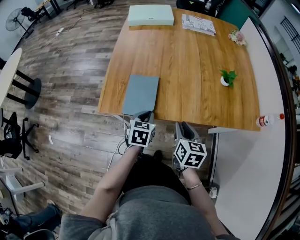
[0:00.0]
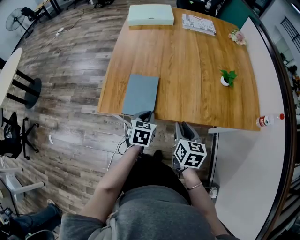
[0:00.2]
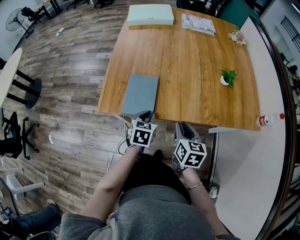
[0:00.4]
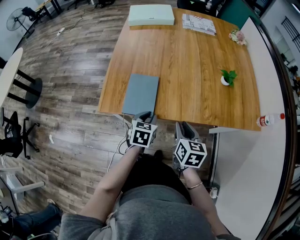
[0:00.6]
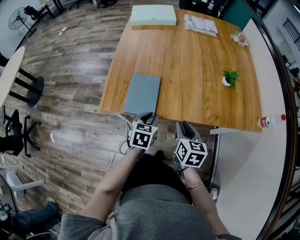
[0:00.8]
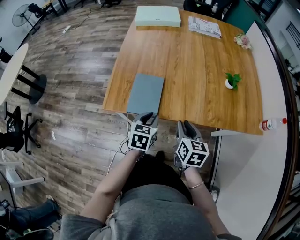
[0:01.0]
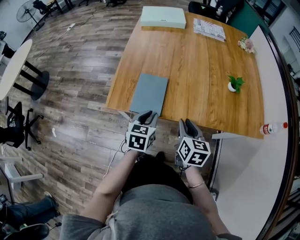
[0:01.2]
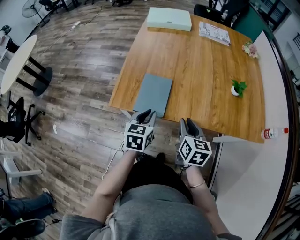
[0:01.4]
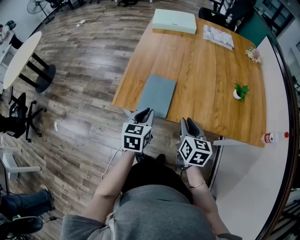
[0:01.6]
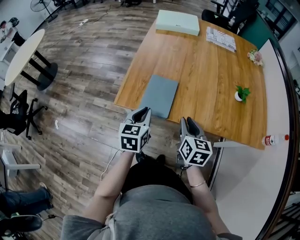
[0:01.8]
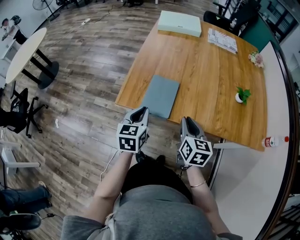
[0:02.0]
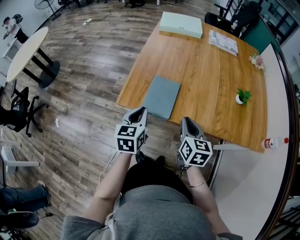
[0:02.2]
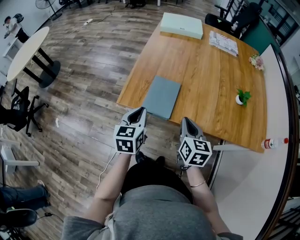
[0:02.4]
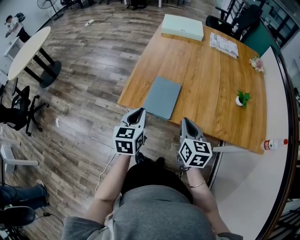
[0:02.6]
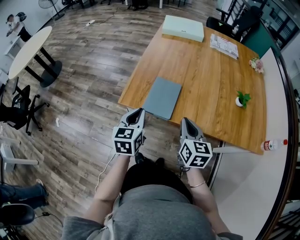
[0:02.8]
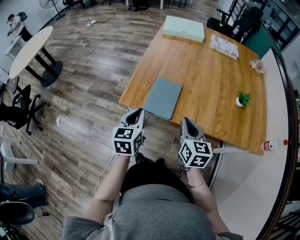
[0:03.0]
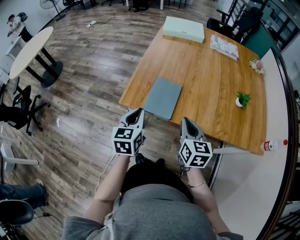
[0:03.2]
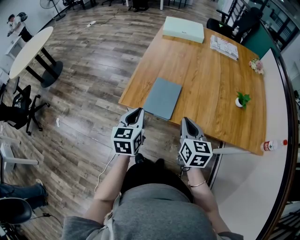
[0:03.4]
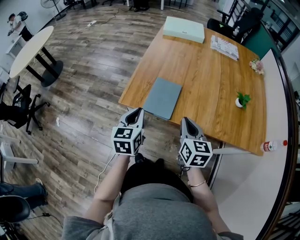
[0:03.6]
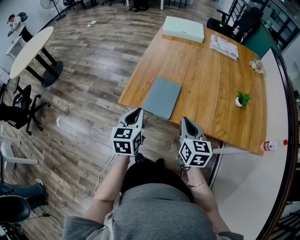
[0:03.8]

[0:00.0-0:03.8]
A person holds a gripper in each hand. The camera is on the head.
0.0 to 1.2 s: There are only small adjustments of the grippers.
1.2 to 2.6 s: The left gripper heads to the left and upward, covering about 10 cm. The right gripper heads to the left, covering some 5 cm, and closes.
2.6 to 3.8 s: Neither gripper changes place.

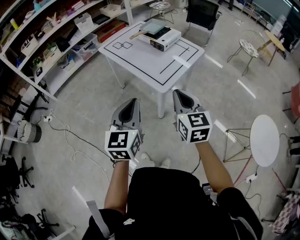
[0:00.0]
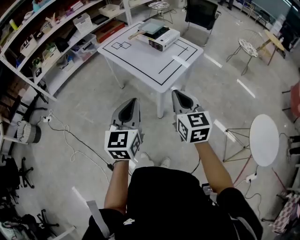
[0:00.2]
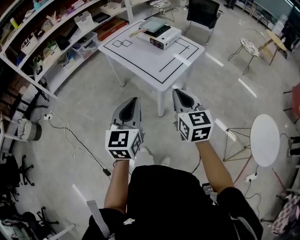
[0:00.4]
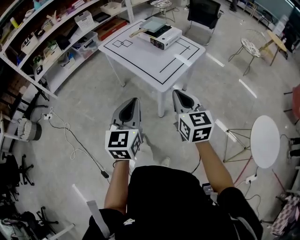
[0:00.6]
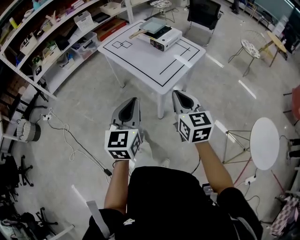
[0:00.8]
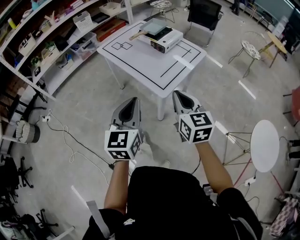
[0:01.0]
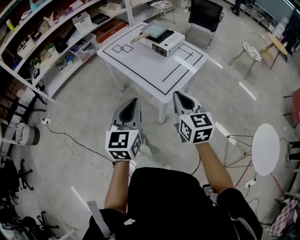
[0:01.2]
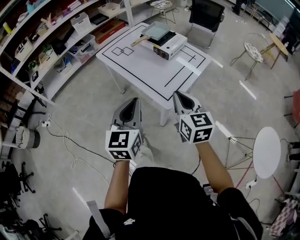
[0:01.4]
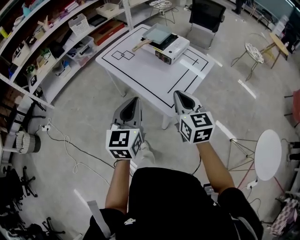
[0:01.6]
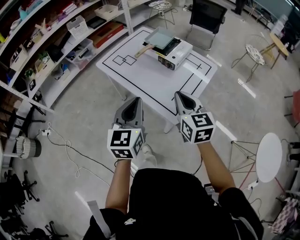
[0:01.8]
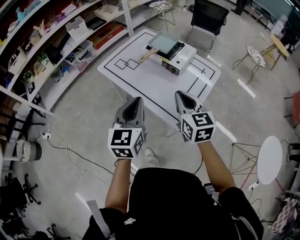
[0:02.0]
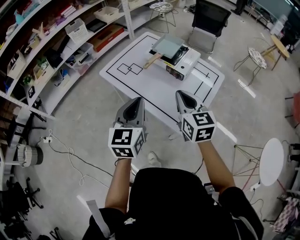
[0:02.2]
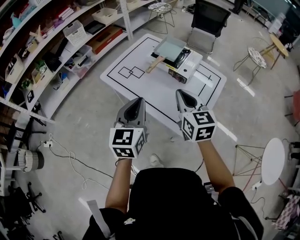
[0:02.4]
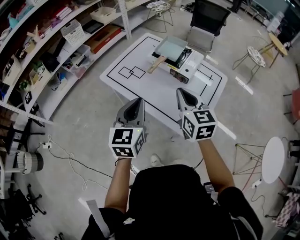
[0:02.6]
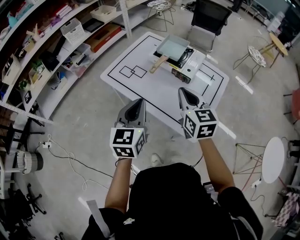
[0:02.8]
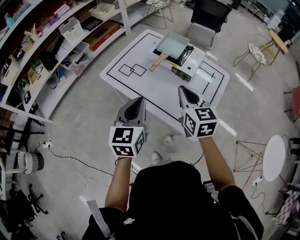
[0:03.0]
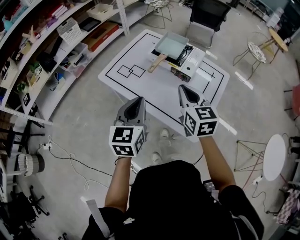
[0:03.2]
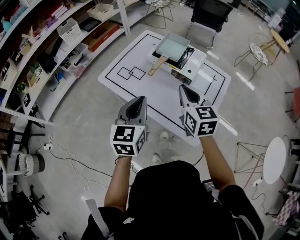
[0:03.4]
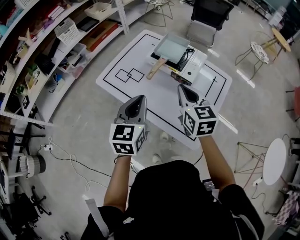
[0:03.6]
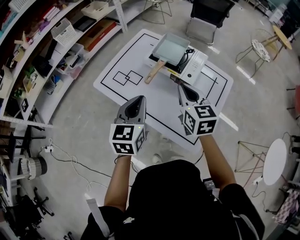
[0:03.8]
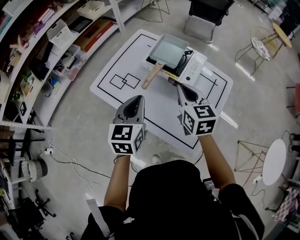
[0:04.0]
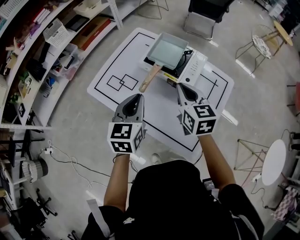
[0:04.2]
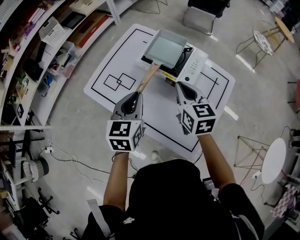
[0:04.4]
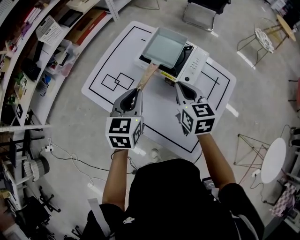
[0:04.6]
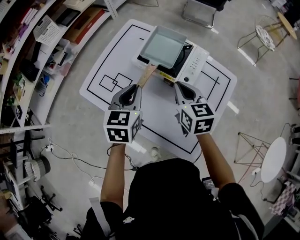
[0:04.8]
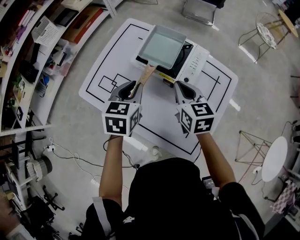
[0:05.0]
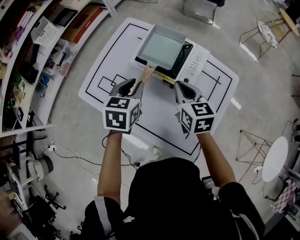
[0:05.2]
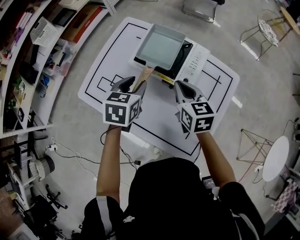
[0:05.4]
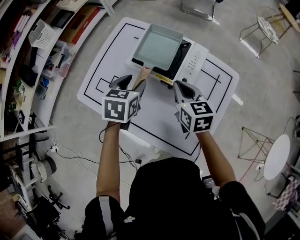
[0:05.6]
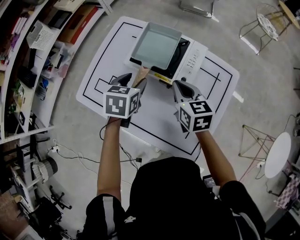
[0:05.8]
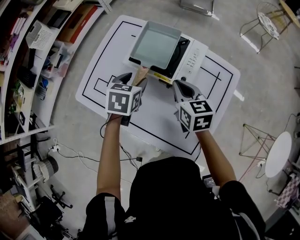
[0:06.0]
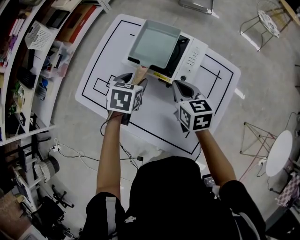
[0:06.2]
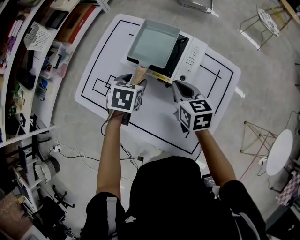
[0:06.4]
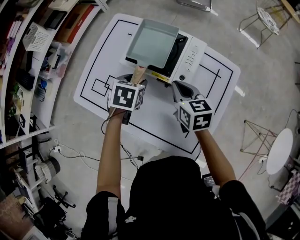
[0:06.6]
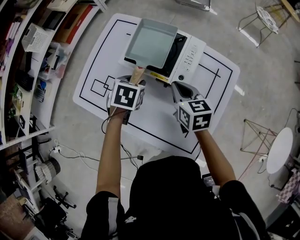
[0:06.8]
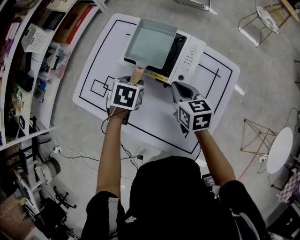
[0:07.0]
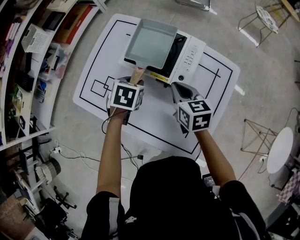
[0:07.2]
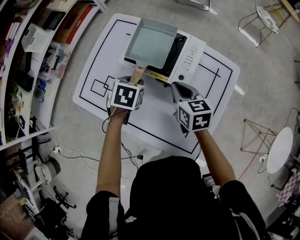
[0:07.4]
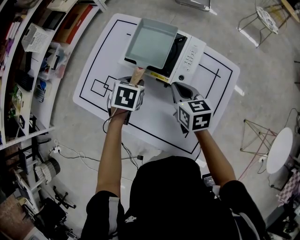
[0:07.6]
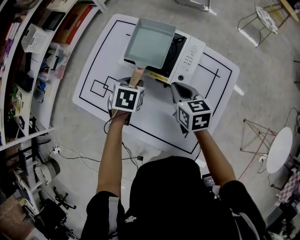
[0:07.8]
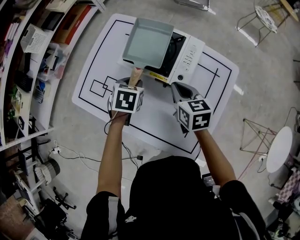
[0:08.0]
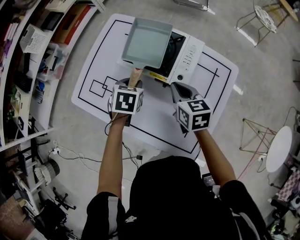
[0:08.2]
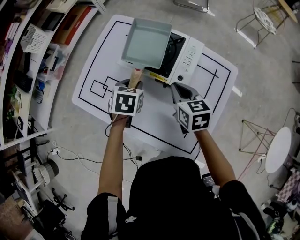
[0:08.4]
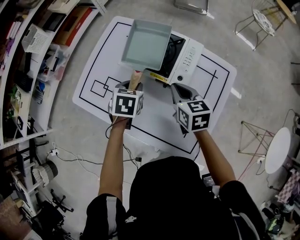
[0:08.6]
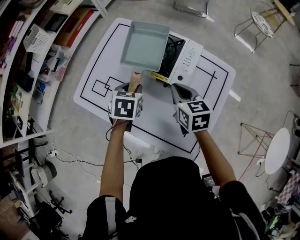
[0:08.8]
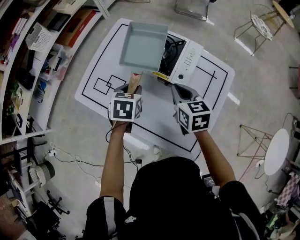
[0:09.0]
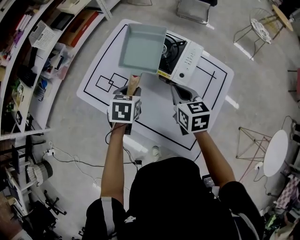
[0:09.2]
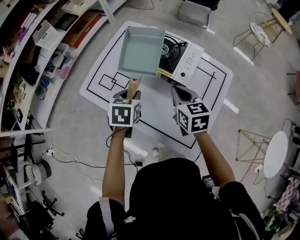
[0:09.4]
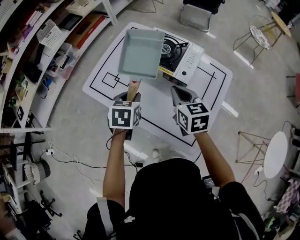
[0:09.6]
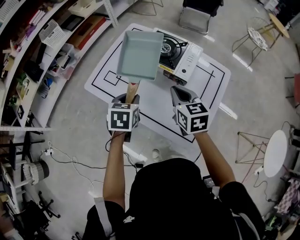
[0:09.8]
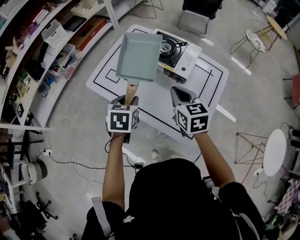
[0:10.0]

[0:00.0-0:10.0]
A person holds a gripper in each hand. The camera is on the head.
0.0 to 1.4 s: Both grippers move forward, roughly 15 cm.
1.4 to 2.8 s: The grippers both shift forward and to the left by approximately 30 cm.
2.8 to 4.2 s: Both grippers move forward, roughly 15 cm.
4.2 to 5.8 s: The left gripper moves forward and downward, approximately 20 cm, swivels about 30 degrees, and opens up; the right gripper shifts approximately 10 cm downward and forward.
5.8 to 7.2 s: The left gripper heads downward, covering some 5 cm, and closes its fingers.
7.2 to 8.6 s: The grippers move only a little.
8.6 to 10.0 s: The grippers both shift backward, upward and to the left by approximately 20 cm.

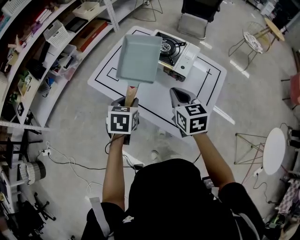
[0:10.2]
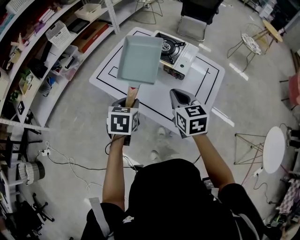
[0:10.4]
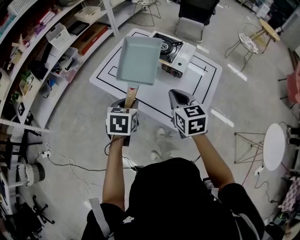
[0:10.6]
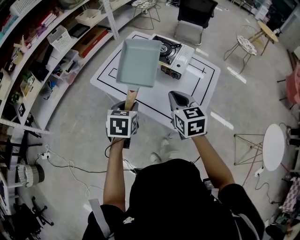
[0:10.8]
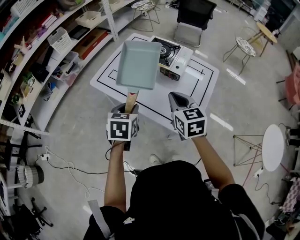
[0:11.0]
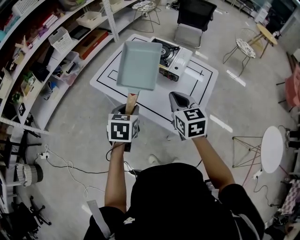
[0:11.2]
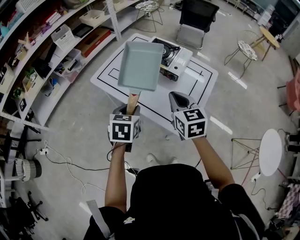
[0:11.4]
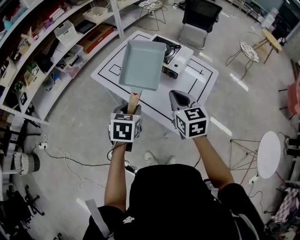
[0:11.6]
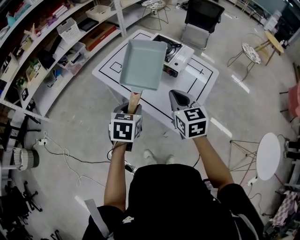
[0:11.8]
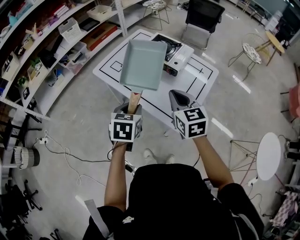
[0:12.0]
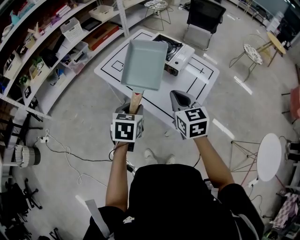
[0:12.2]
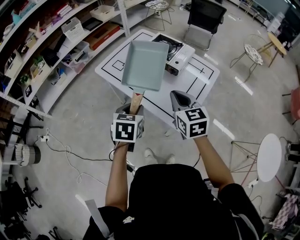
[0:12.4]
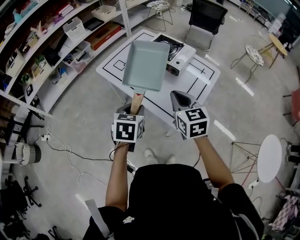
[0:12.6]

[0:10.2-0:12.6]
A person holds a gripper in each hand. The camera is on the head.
10.2 to 11.4 s: The grippers both shift backward by some 10 cm.
11.4 to 12.6 s: The two grippers go some 5 cm backward.

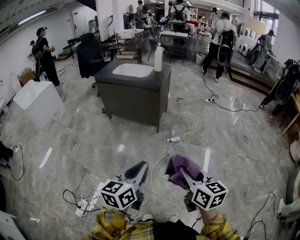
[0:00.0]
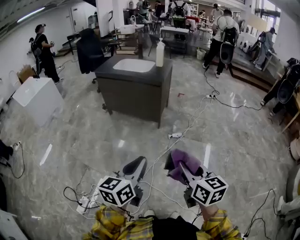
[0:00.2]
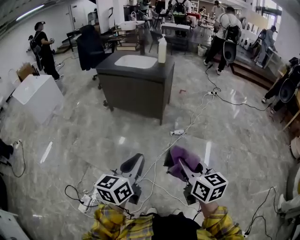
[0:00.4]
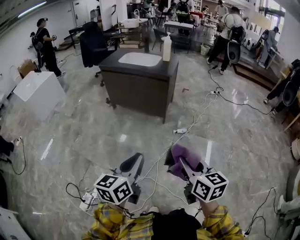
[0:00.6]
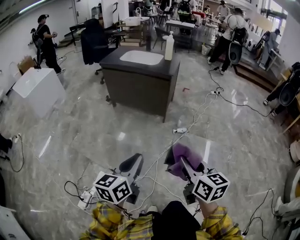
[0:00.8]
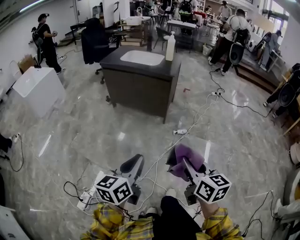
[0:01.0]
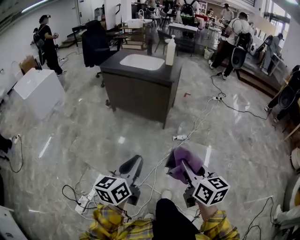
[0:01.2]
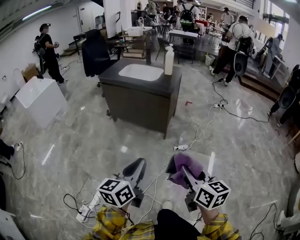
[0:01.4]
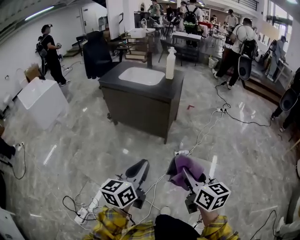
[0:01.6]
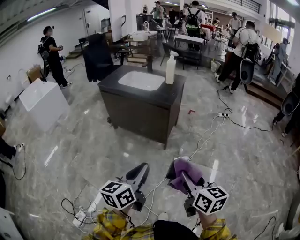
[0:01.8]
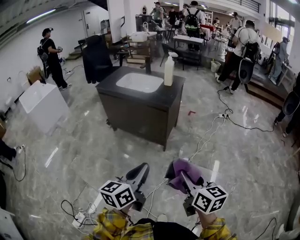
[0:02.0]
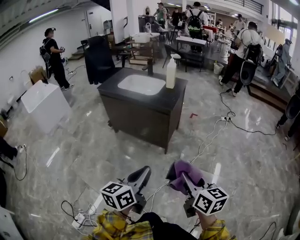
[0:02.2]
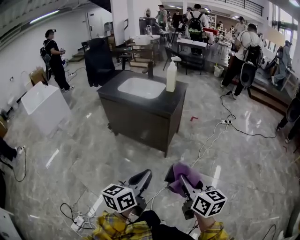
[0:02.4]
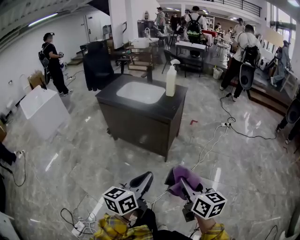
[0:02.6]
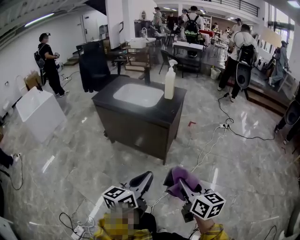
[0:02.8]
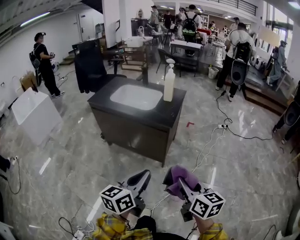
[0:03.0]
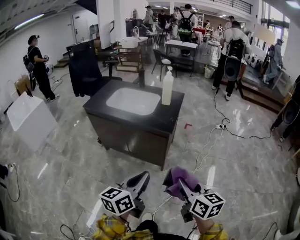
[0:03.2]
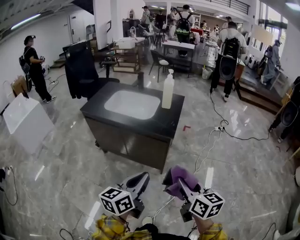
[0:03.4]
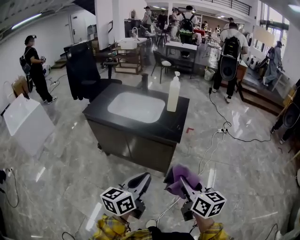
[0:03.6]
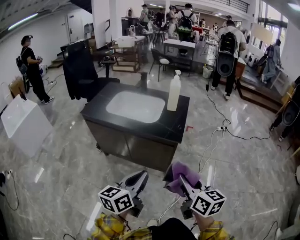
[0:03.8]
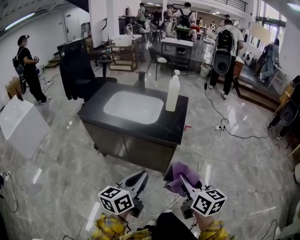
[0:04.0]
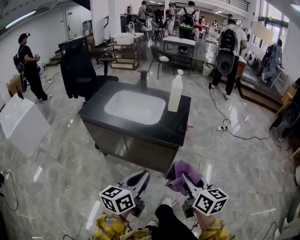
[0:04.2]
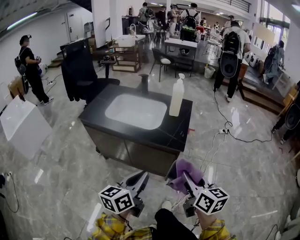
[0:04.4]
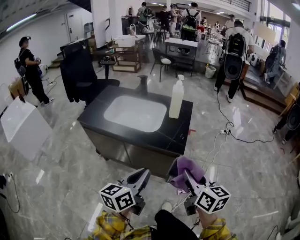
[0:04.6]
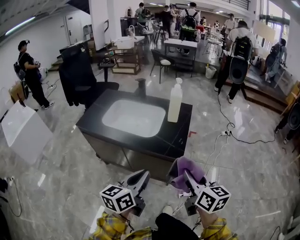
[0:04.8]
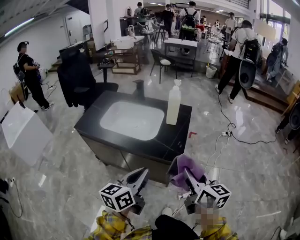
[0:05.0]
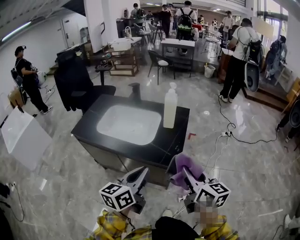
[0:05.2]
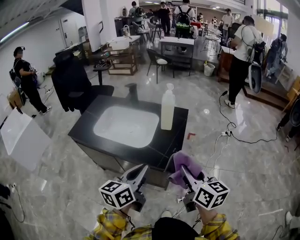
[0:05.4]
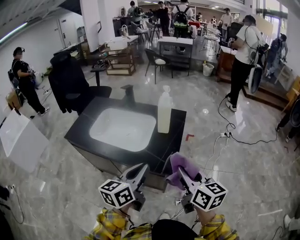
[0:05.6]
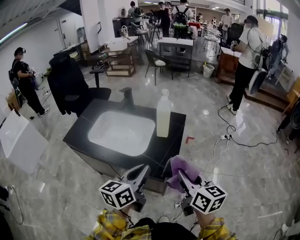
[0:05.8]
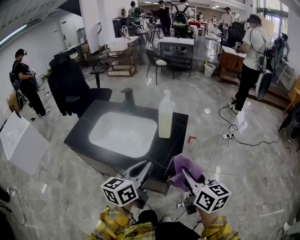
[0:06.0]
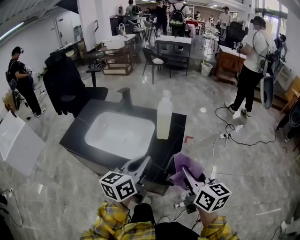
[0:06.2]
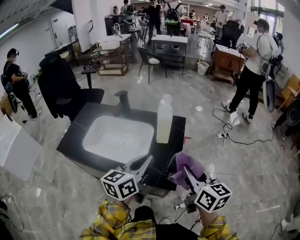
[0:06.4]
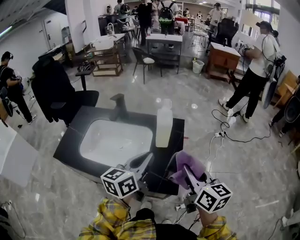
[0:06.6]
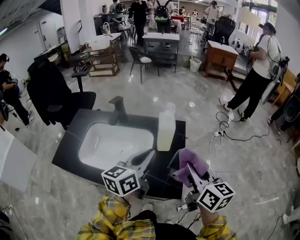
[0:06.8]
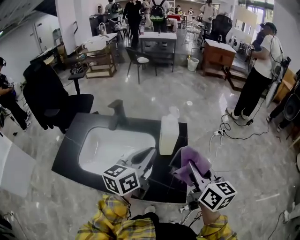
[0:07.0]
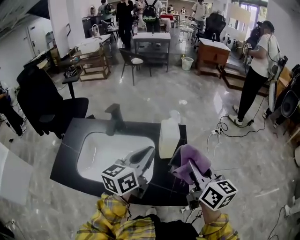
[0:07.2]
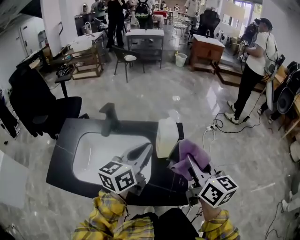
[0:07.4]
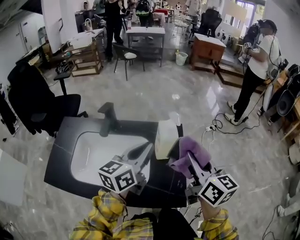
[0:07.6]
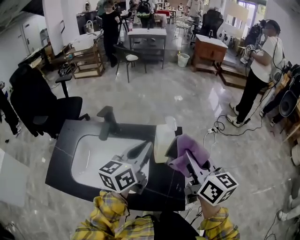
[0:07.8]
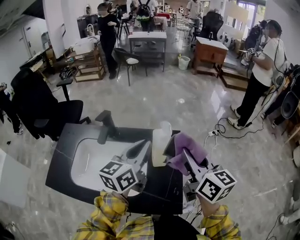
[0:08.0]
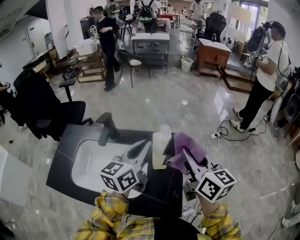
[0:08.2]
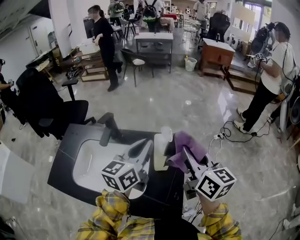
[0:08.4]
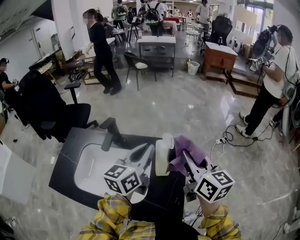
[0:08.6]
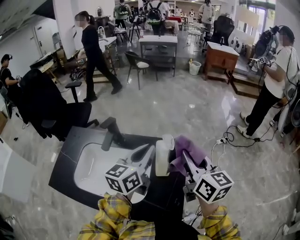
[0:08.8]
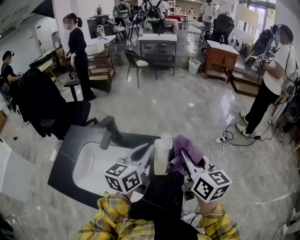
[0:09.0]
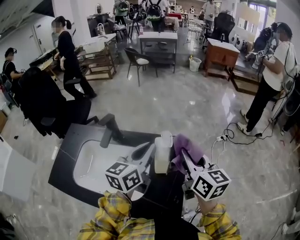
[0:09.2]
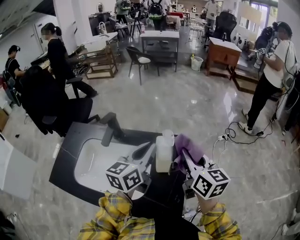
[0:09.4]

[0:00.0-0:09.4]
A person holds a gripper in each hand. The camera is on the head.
0.0 to 1.6 s: Both grippers travel together forward, about 20 cm.
1.6 to 3.2 s: The grippers both shift forward by some 30 cm.
3.2 to 4.8 s: Both grippers move forward, roughly 25 cm.
4.8 to 6.2 s: The grippers both shift forward by roughly 20 cm.
6.2 to 7.8 s: The right gripper is displaced forward and to the left by some 25 cm. The left gripper is displaced forward by approximately 25 cm.
7.8 to 9.4 s: The right gripper heads forward, covering some 10 cm, while the left gripper goes approximately 5 cm forward.
